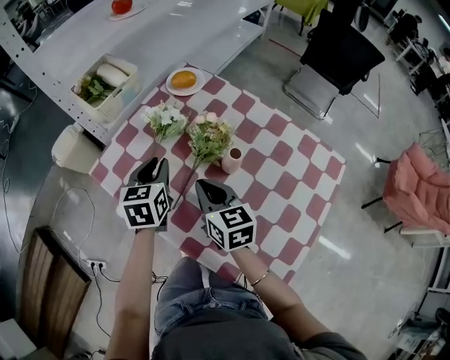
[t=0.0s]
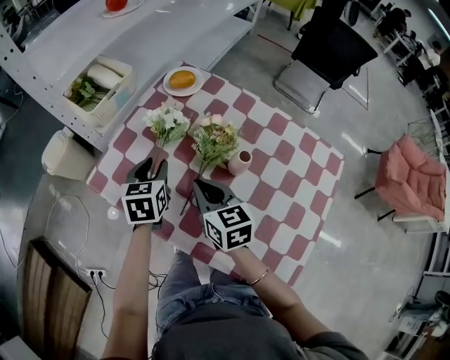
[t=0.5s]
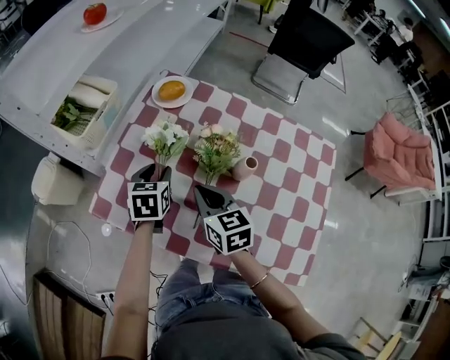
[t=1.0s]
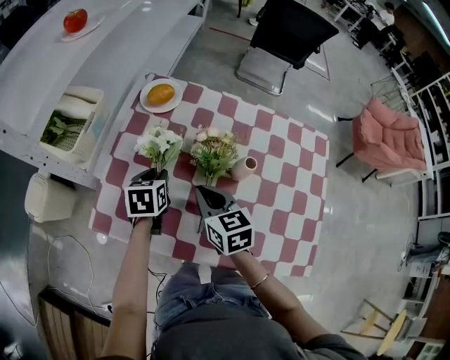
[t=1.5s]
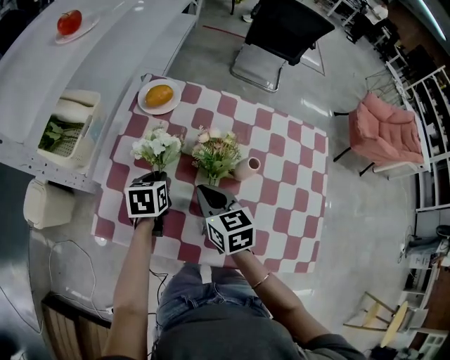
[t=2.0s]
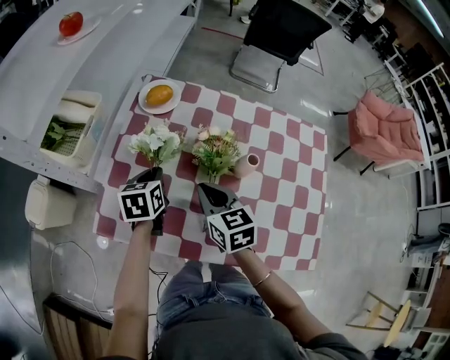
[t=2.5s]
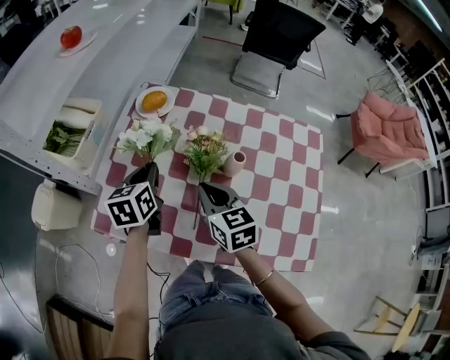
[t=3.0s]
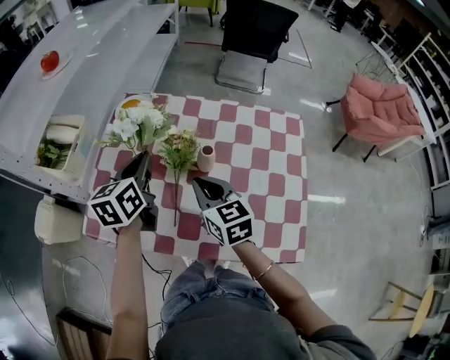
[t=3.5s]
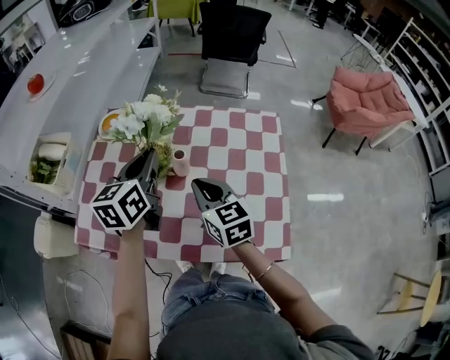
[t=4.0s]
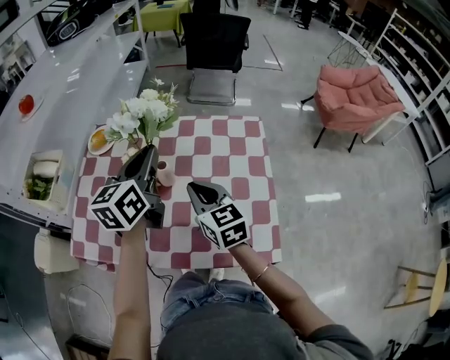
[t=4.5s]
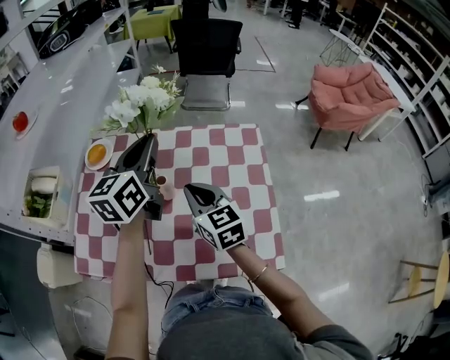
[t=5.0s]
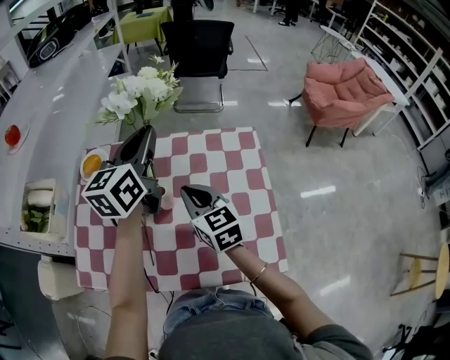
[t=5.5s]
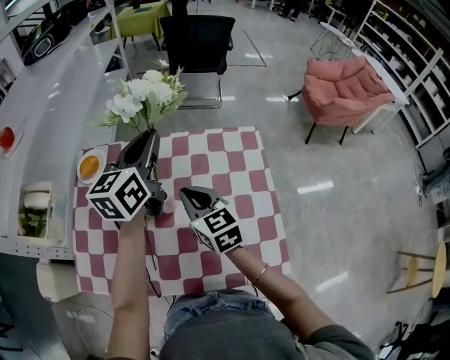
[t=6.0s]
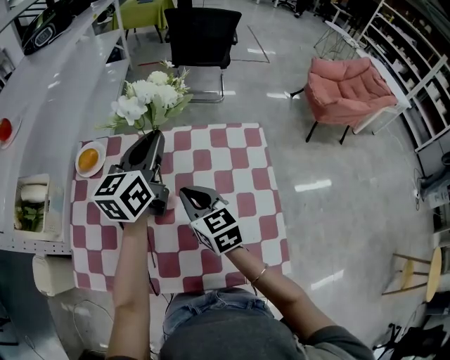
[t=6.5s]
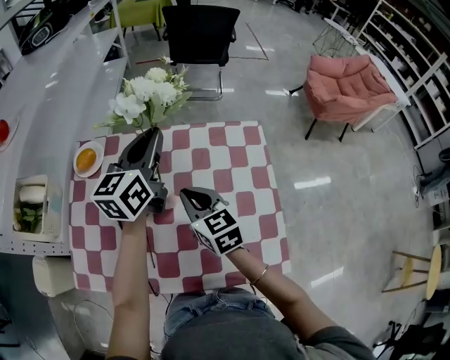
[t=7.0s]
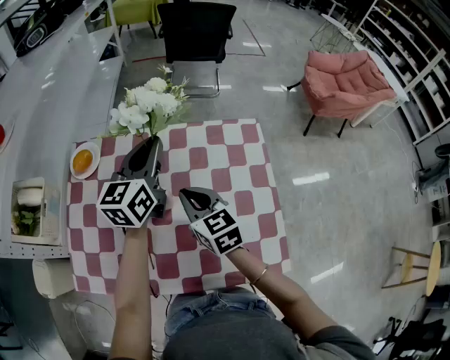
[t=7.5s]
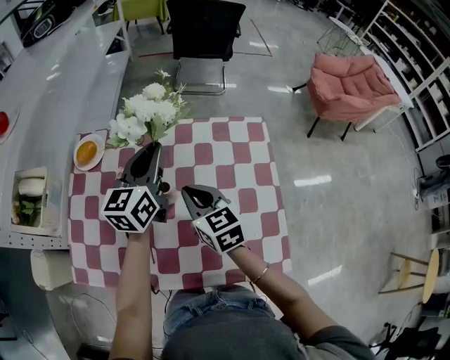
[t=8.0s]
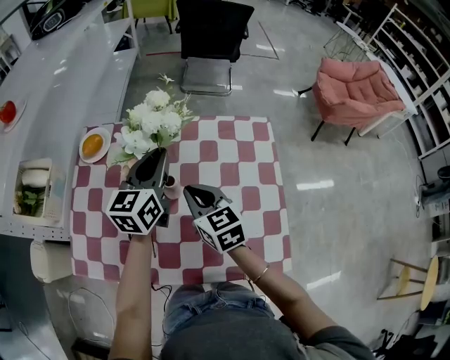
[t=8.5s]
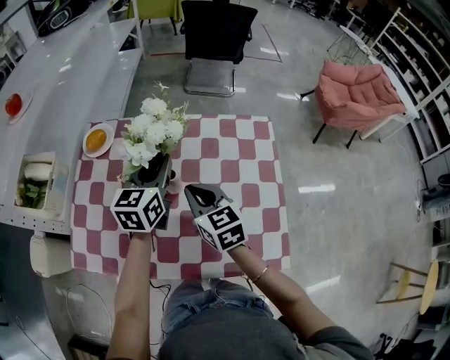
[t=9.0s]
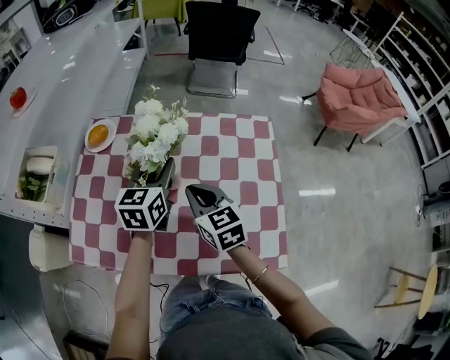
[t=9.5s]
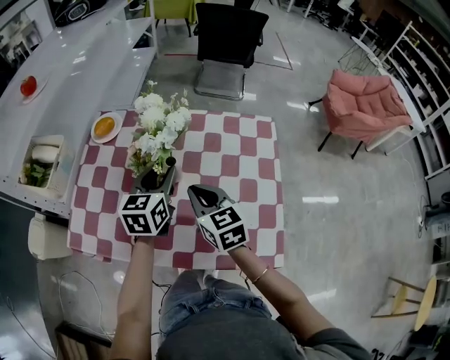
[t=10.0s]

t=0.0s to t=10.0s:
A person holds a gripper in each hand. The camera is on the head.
t=0.0s to t=2.0s: The left gripper moves approximately 15 cm, and rotates approximately 30 degrees, while the right gripper shifts by approximately 10 cm, and changes its angle by some 20 degrees.
t=2.0s to t=4.0s: The left gripper heads upward and to the right, covering approximately 30 cm, and tilts its fingers about 30 degrees upward, while the right gripper moves to the right and upward, some 20 cm.
t=4.0s to t=6.0s: The left gripper travels forward, to the right and upward by some 15 cm; the right gripper goes some 10 cm forward.
t=6.0s to t=8.0s: The left gripper is displaced downward by approximately 10 cm.
t=8.0s to t=10.0s: The left gripper is displaced backward and downward by about 15 cm, and opens. Meanwhile the right gripper moves backward, roughly 5 cm.

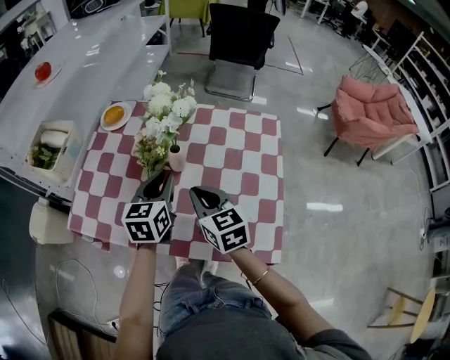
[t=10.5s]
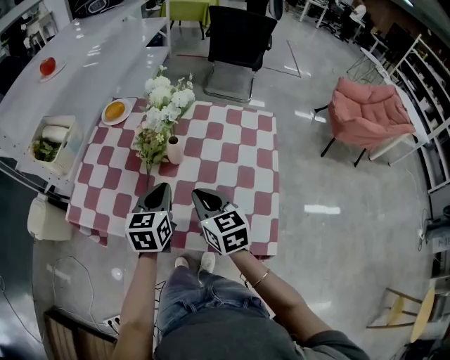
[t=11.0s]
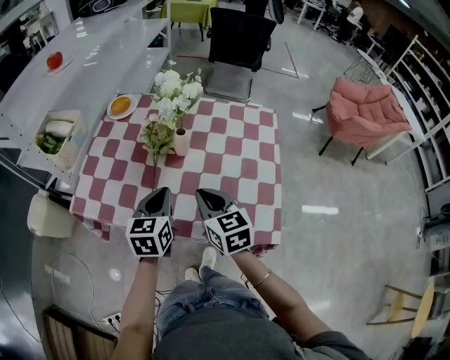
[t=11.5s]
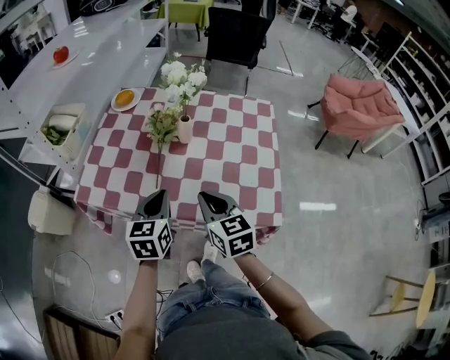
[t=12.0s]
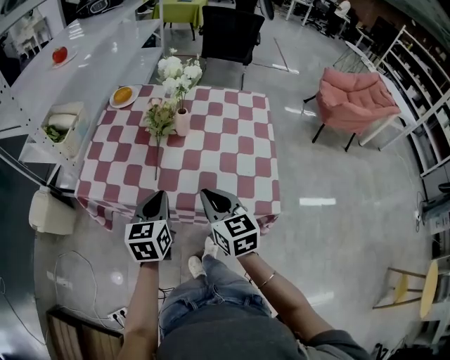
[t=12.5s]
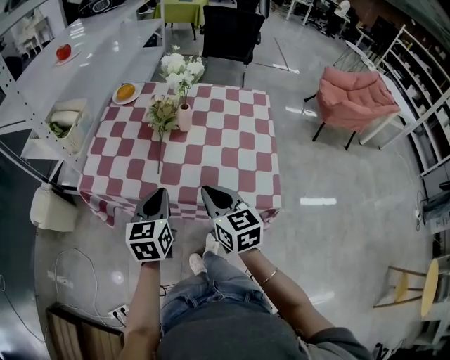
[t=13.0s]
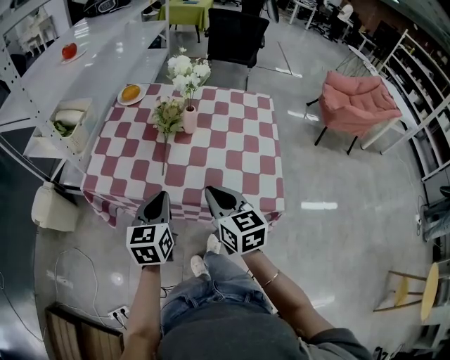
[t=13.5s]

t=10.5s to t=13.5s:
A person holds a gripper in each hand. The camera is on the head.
t=10.5s to t=12.0s: The left gripper travels backward and to the left by roughly 20 cm. The right gripper travels backward by roughly 15 cm.
t=12.0s to t=13.5s: Both grippers travel together backward, roughly 5 cm.

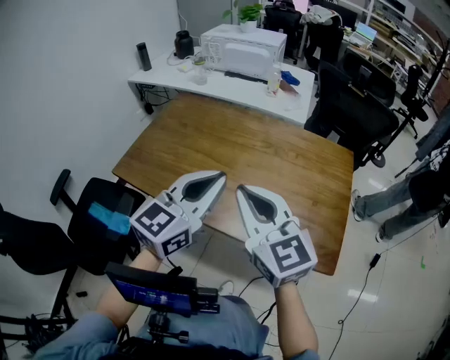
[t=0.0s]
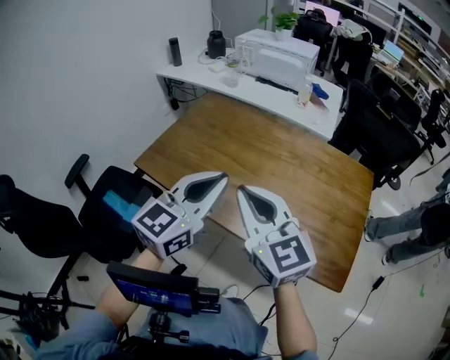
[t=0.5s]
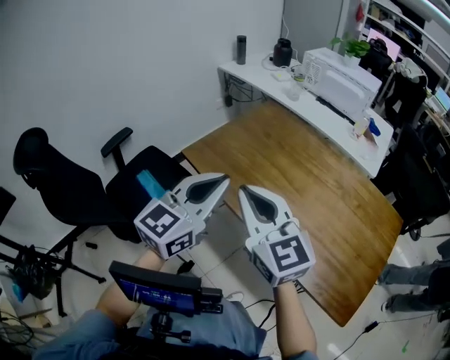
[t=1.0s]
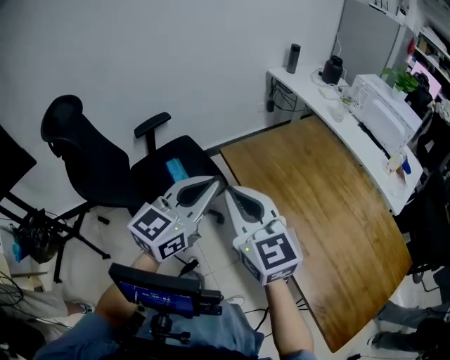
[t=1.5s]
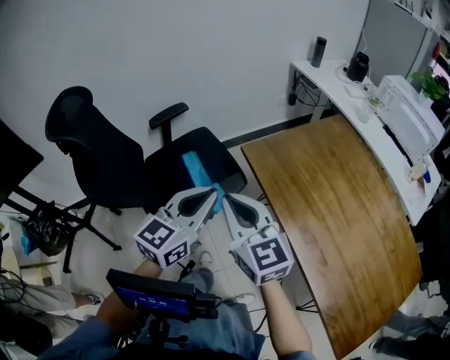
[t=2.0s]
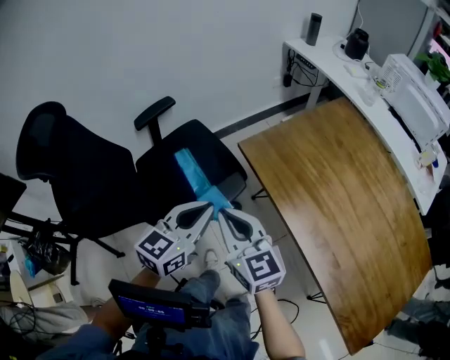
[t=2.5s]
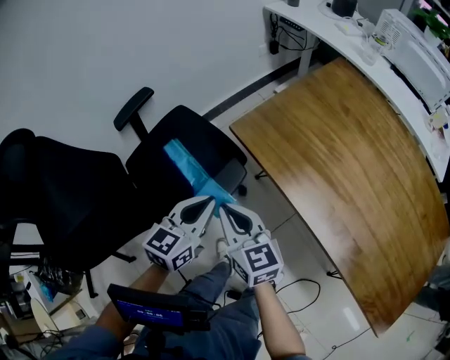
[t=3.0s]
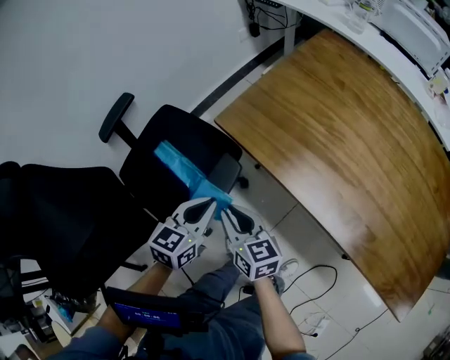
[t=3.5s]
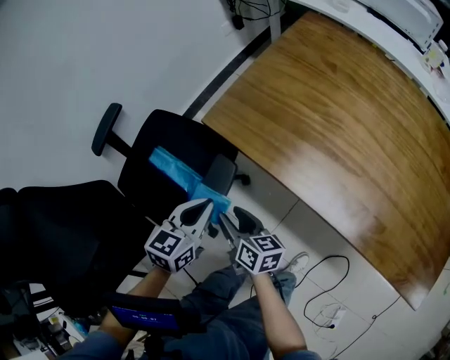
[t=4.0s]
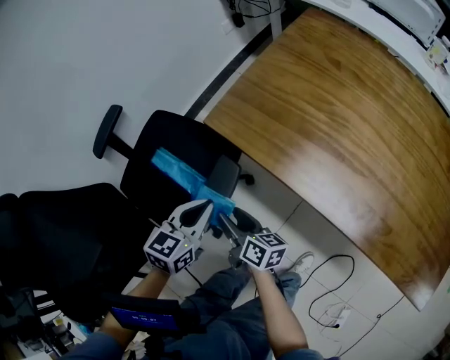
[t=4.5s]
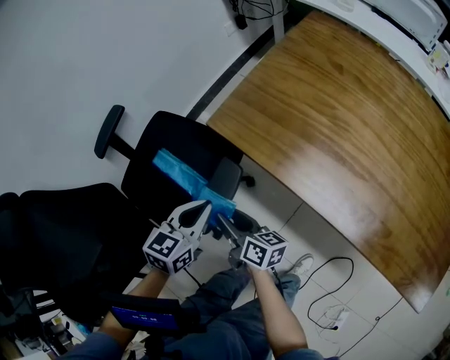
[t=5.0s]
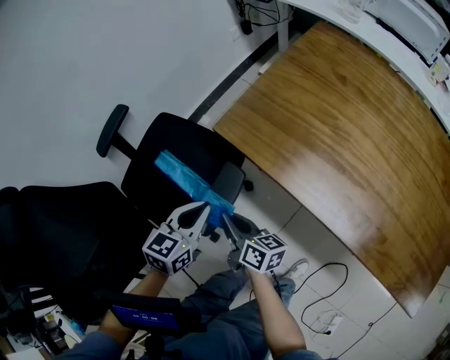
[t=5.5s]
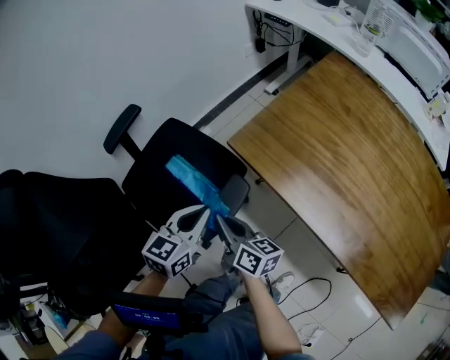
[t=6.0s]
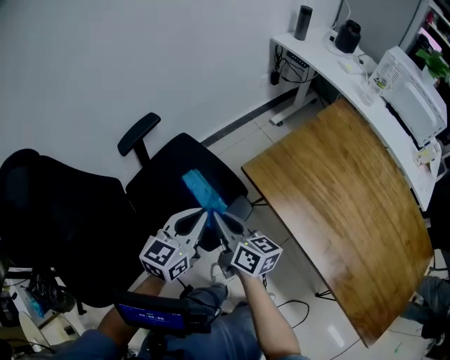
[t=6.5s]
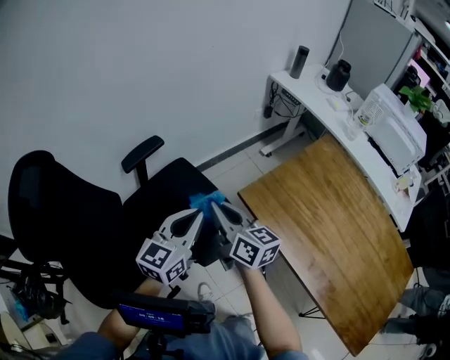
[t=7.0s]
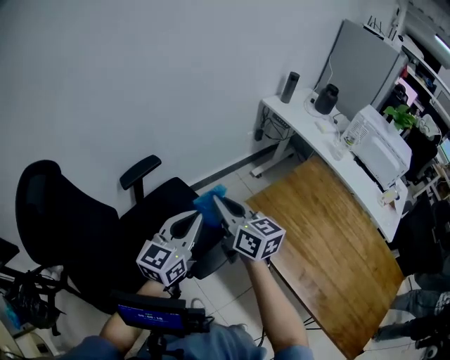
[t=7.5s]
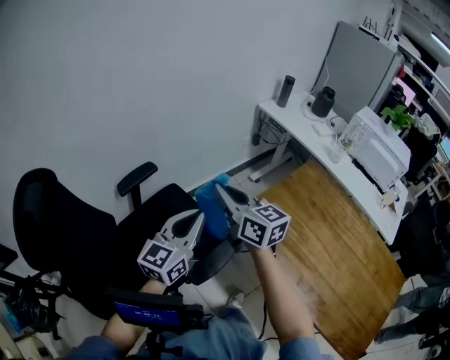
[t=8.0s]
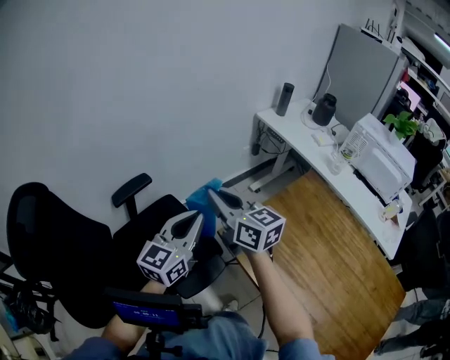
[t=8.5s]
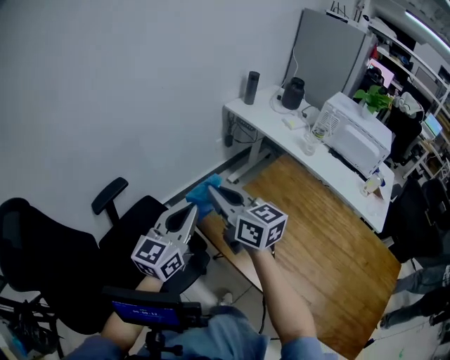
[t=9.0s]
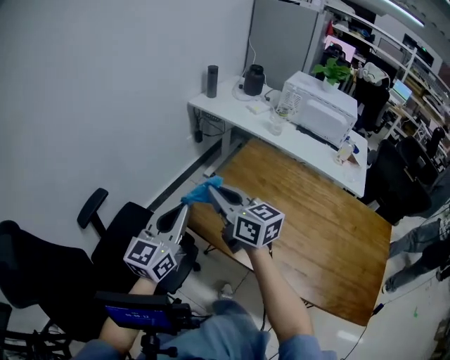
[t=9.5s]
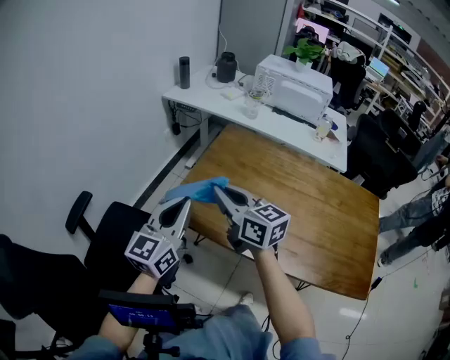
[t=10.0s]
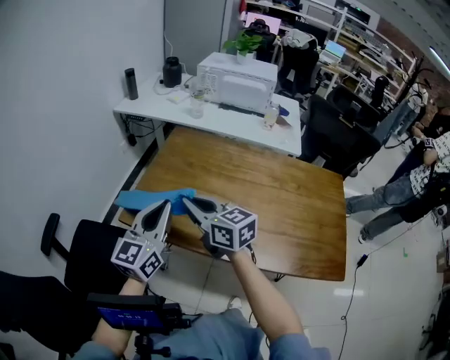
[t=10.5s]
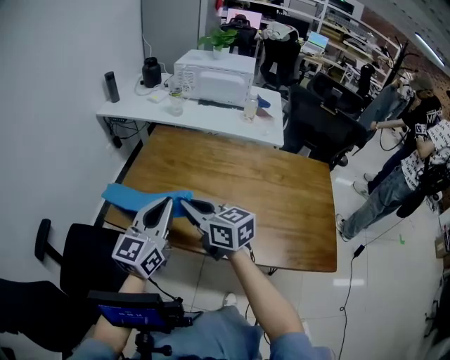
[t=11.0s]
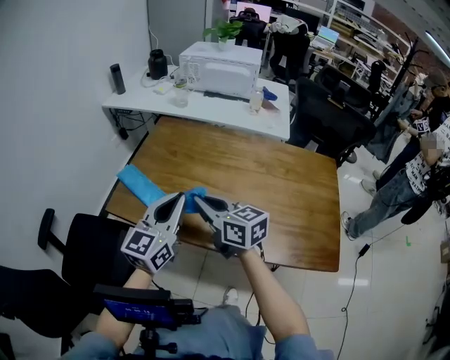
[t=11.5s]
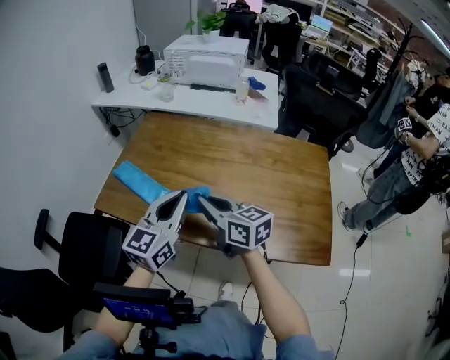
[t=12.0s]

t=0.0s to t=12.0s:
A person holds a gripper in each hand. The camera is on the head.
t=0.0s to t=2.0s: The left gripper moves about 40 cm, and changes its angle by some 50 degrees. Meanwhile the right gripper moves some 40 cm, and rotates about 40 degrees.
t=2.0s to t=4.0s: The grippers both shift downward by some 30 cm. The left gripper changes its angle by some 30 degrees. Meanwhile the right gripper rotates around the line of its fingers by roughly 50 degrees, clockwise from behind, and opens.
t=4.0s to t=6.0s: The right gripper travels upward by some 10 cm, and closes. Meanwhile the left gripper changes place by some 5 cm.
t=6.0s to t=8.0s: The left gripper moves upward, approximately 25 cm, and turns by about 30 degrees, while the right gripper moves upward and forward, about 35 cm, and changes its angle by about 40 degrees.
t=8.0s to t=10.0s: The left gripper shifts by roughly 20 cm, and turns by some 20 degrees. The right gripper ends up roughly 25 cm from where it was, and changes its angle by approximately 20 degrees.
t=10.0s to t=12.0s: The left gripper is displaced to the right by approximately 30 cm. The right gripper heads to the right and backward, covering roughly 30 cm.

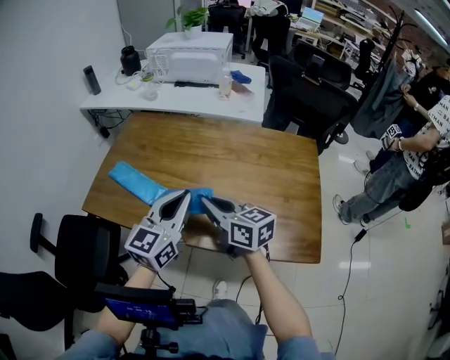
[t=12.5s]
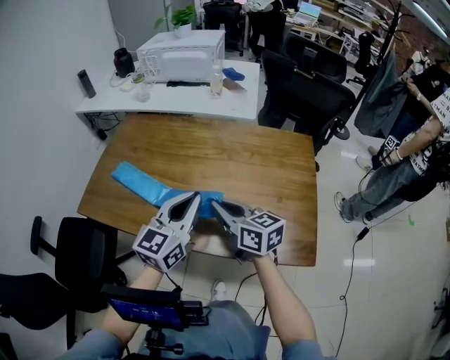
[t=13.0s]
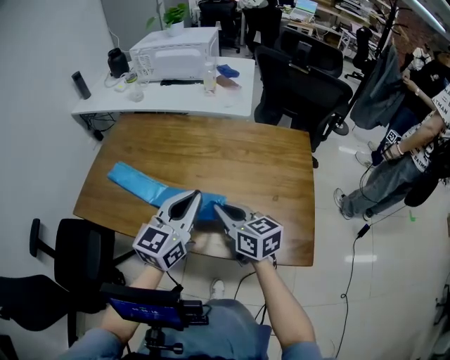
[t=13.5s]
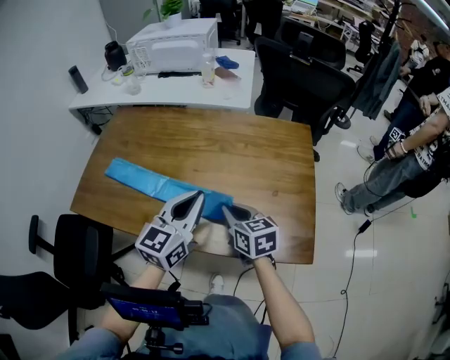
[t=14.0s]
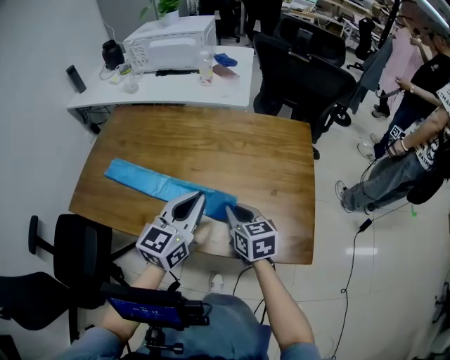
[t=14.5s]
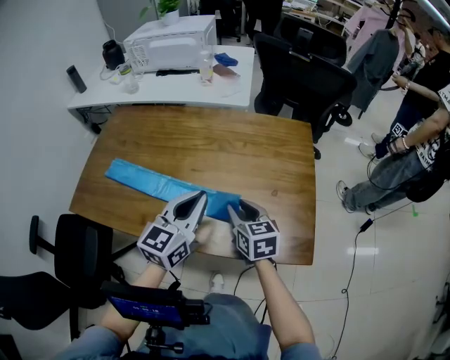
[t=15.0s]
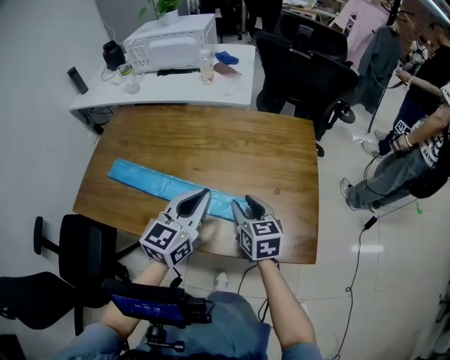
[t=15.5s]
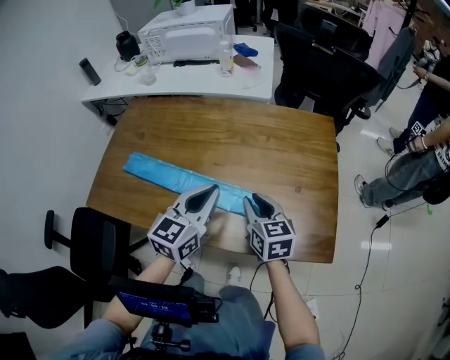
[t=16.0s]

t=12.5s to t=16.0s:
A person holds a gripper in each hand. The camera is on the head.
t=12.5s to t=14.5s: Both grippers travel together to the right and downward, about 15 cm. The right gripper changes its angle by some 30 degrees.
t=14.5s to t=16.0s: There are only small adjustments of the grippers.
